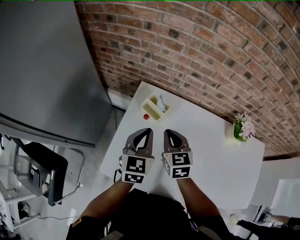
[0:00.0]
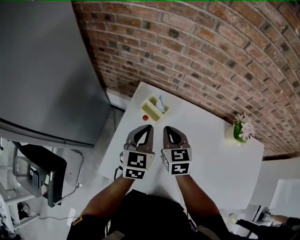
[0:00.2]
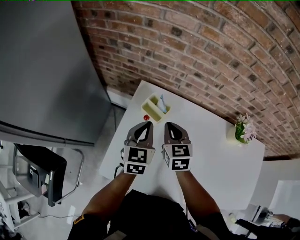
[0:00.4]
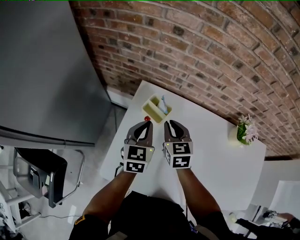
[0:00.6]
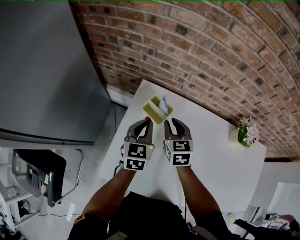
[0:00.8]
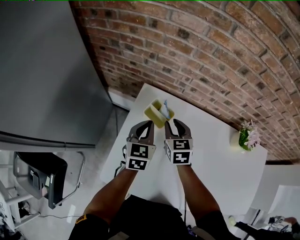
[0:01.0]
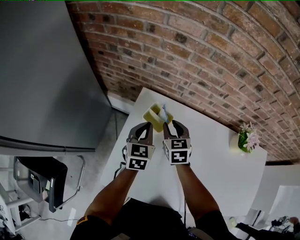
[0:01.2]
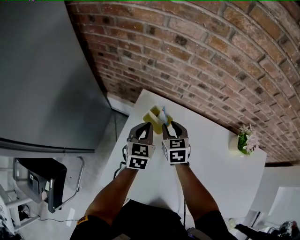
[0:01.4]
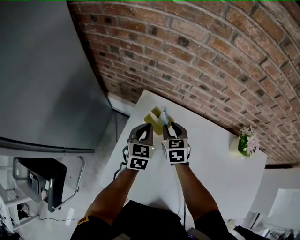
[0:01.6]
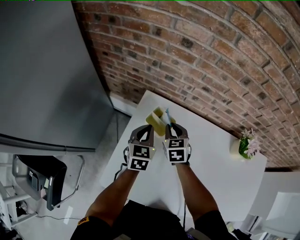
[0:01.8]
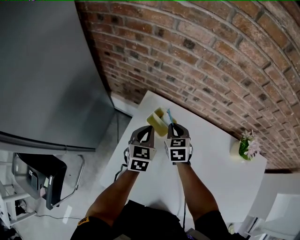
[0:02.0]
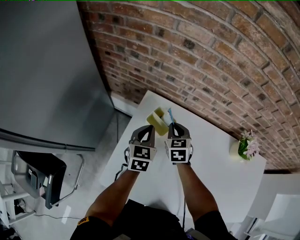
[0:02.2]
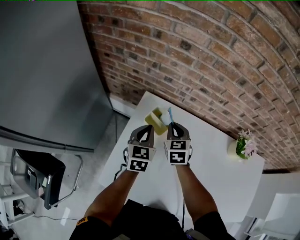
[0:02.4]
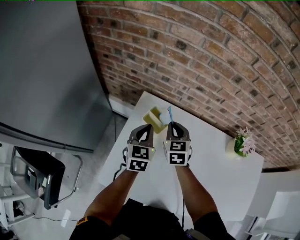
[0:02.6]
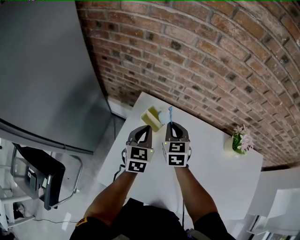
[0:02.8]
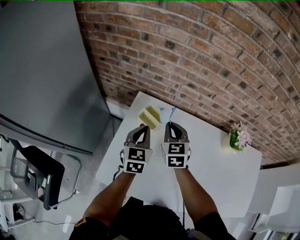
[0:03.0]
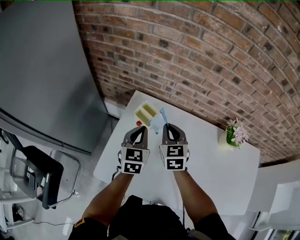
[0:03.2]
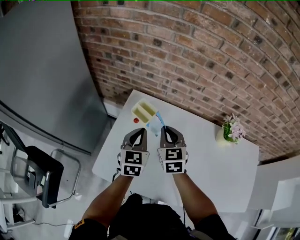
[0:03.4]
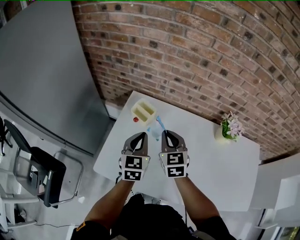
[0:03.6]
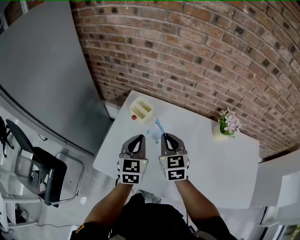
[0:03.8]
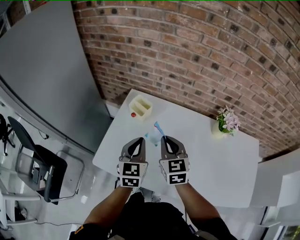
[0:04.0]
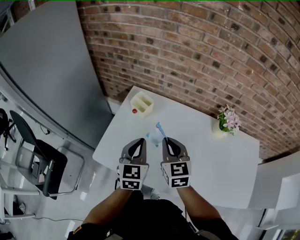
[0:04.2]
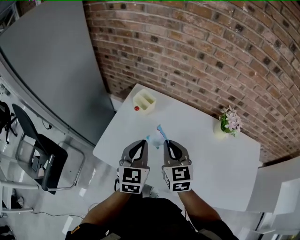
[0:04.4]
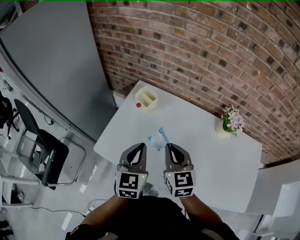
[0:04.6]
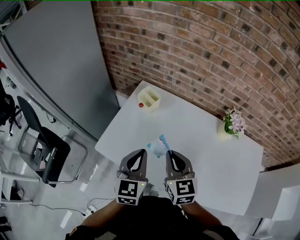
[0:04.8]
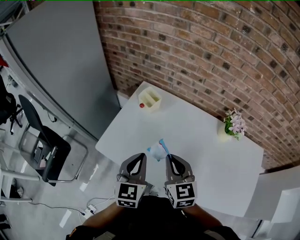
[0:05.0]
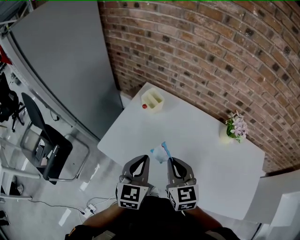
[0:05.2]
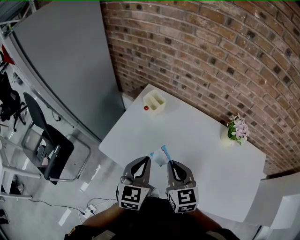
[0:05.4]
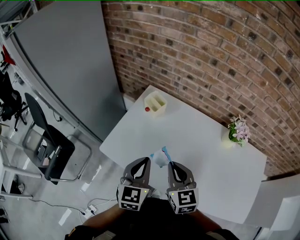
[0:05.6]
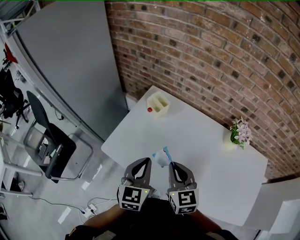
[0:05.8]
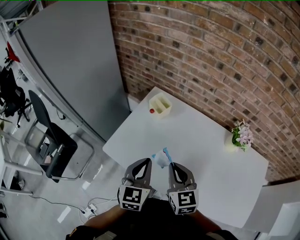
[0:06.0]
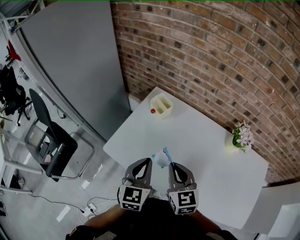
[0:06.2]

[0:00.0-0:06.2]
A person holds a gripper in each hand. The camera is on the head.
0:00.0 to 0:01.6: The grippers both shift forward and downward by some 15 cm. The right gripper opens up.
0:01.6 to 0:03.2: The left gripper is displaced backward and upward by approximately 10 cm, while the right gripper goes approximately 15 cm upward and backward, and closes.
0:03.2 to 0:04.6: Both grippers move backward, some 20 cm.
0:04.6 to 0:06.2: The grippers make only small movements.

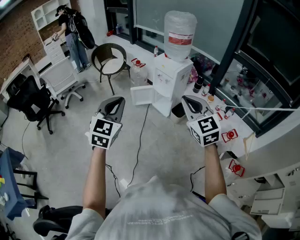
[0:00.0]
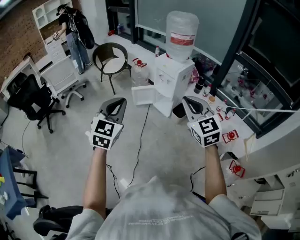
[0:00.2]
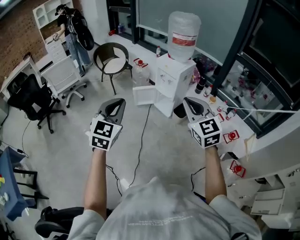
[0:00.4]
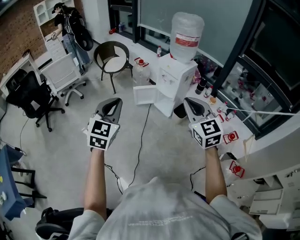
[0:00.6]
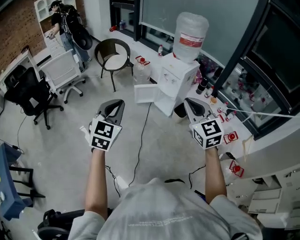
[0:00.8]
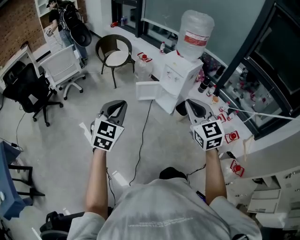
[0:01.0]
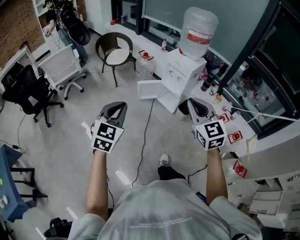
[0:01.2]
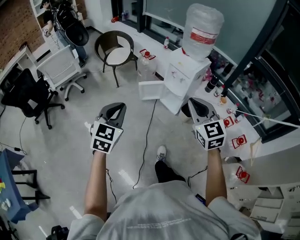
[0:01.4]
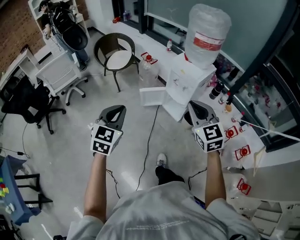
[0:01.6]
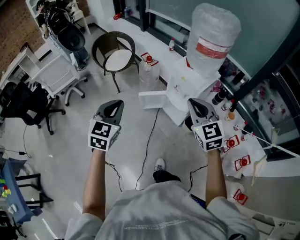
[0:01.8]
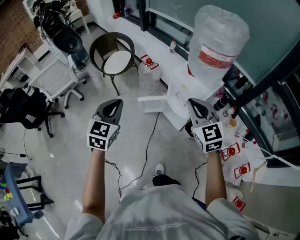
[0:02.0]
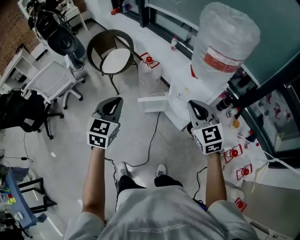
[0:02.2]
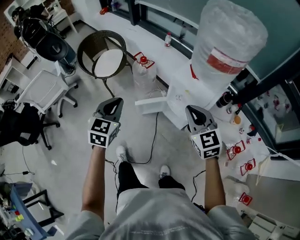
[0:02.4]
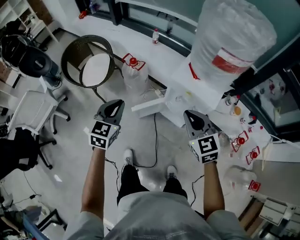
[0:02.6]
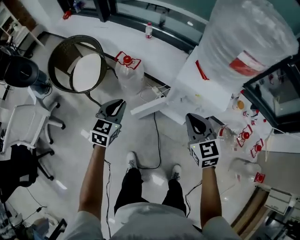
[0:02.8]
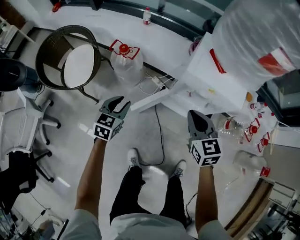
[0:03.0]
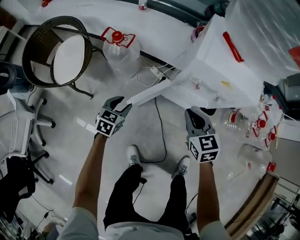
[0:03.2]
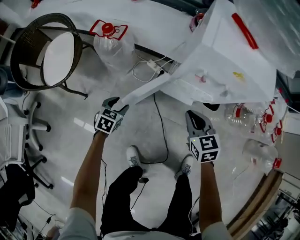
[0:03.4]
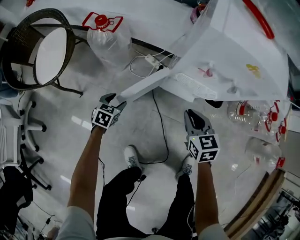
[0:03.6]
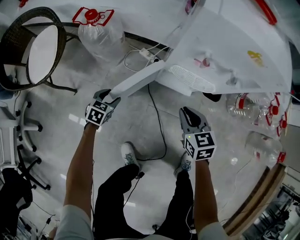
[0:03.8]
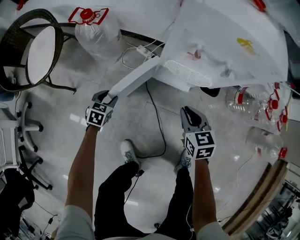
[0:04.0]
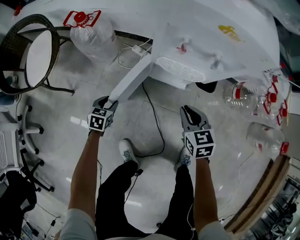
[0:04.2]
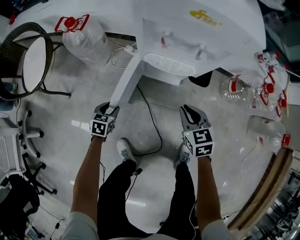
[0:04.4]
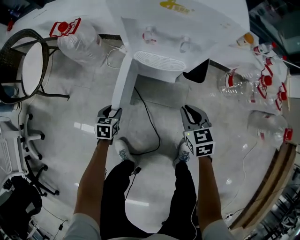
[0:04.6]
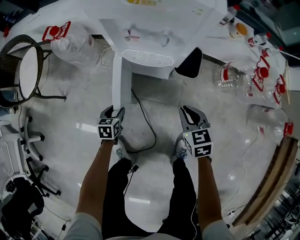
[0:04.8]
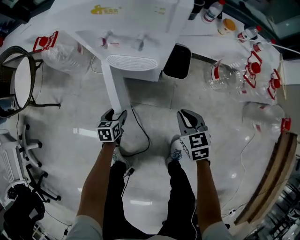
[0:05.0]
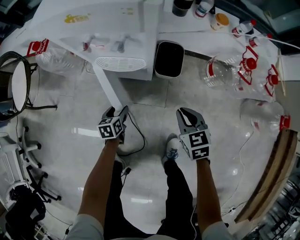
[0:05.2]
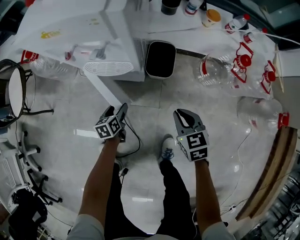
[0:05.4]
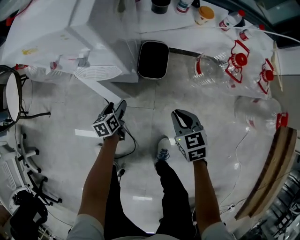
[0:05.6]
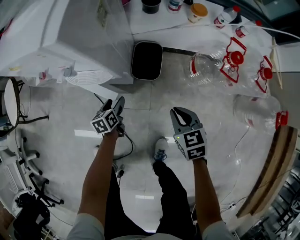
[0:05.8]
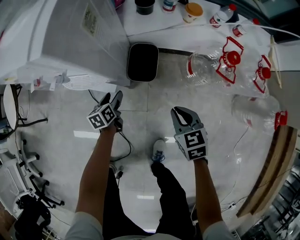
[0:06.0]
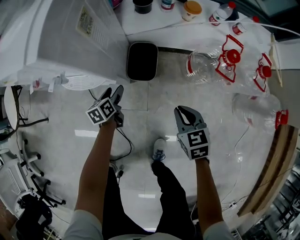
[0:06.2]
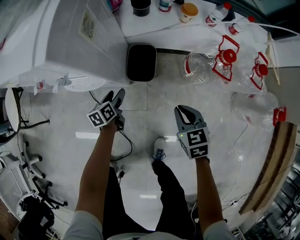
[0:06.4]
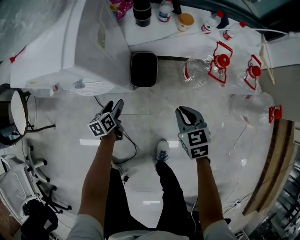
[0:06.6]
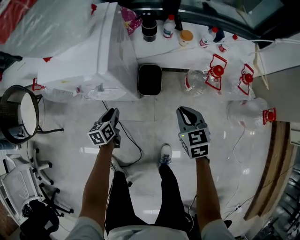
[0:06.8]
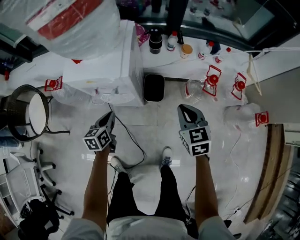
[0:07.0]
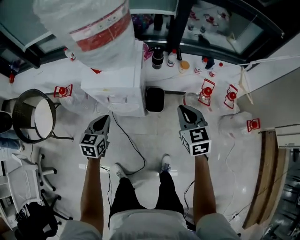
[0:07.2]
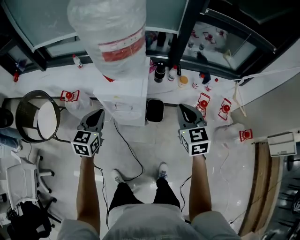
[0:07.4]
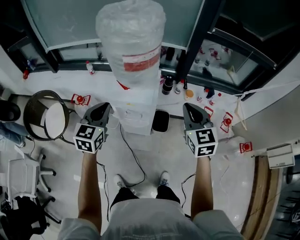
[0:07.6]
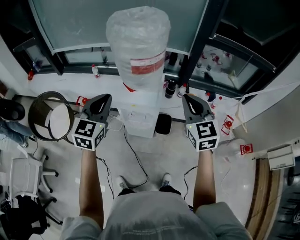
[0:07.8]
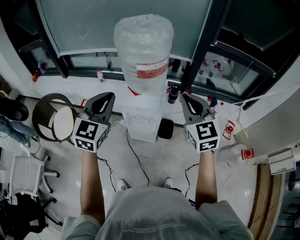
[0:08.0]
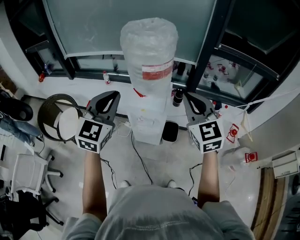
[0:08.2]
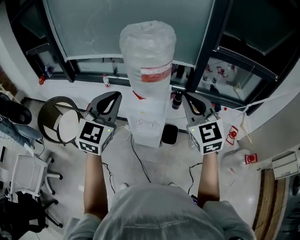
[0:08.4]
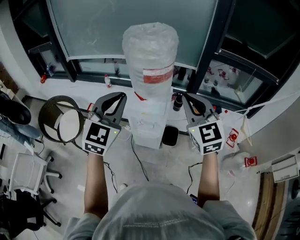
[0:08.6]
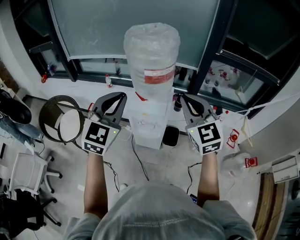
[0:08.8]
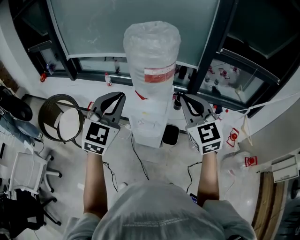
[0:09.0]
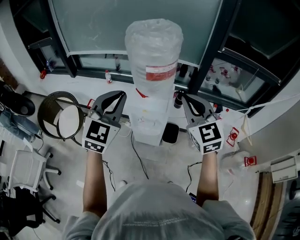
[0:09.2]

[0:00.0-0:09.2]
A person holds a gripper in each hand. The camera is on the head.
0:00.0 to 0:01.6: The right gripper is displaced forward by some 25 cm. The left gripper goes about 25 cm forward and downward.
0:01.6 to 0:03.0: The right gripper changes place by some 50 cm, and rotates roughly 40 degrees, while the left gripper ends up about 60 cm from where it was, swivels roughly 30 degrees, and opens its fingers.
0:03.0 to 0:04.6: The left gripper is displaced downward by some 35 cm, and turns by roughly 20 degrees. The right gripper moves downward and to the right, about 35 cm.
0:04.6 to 0:06.2: The left gripper moves to the right and forward, about 40 cm, and swivels roughly 30 degrees, while the right gripper shifts about 30 cm to the right.
0:06.2 to 0:07.6: The grippers both shift upward by about 60 cm. The right gripper tilts its fingers some 30 degrees upward, while the left gripper rolls clockwise, seen from behind, by about 40 degrees, and closes.
0:07.6 to 0:09.2: The left gripper moves upward, about 15 cm, and swivels approximately 30 degrees. The right gripper goes some 15 cm upward and to the left, and rotates about 20 degrees.

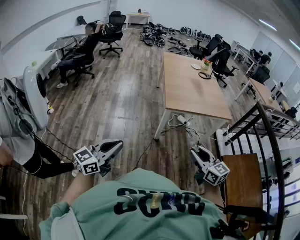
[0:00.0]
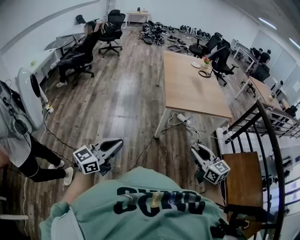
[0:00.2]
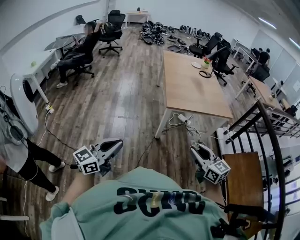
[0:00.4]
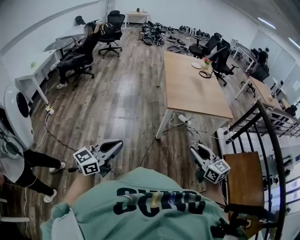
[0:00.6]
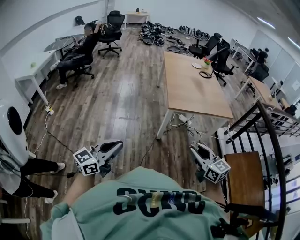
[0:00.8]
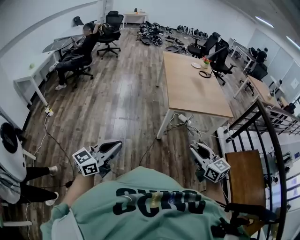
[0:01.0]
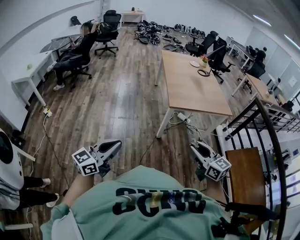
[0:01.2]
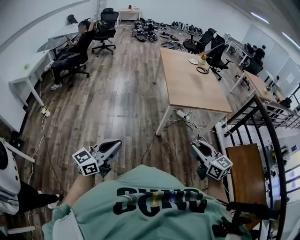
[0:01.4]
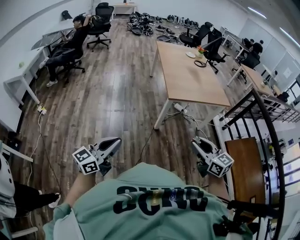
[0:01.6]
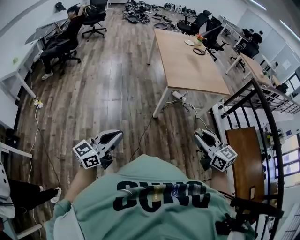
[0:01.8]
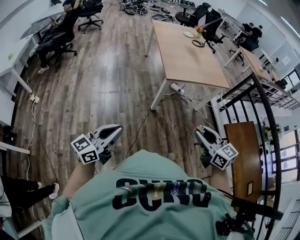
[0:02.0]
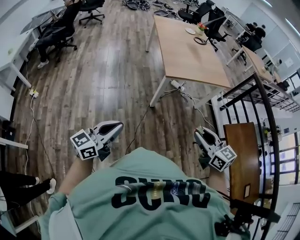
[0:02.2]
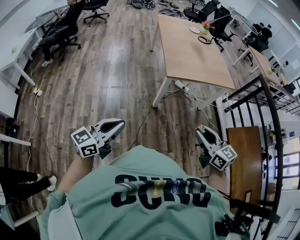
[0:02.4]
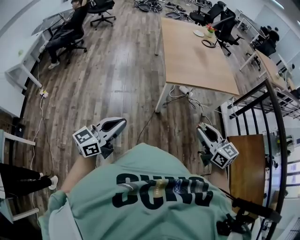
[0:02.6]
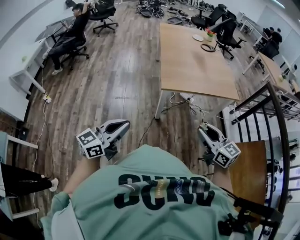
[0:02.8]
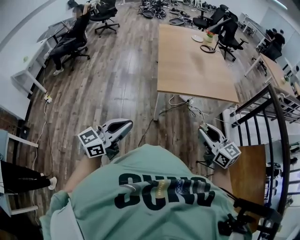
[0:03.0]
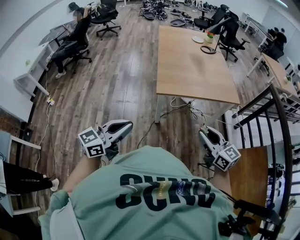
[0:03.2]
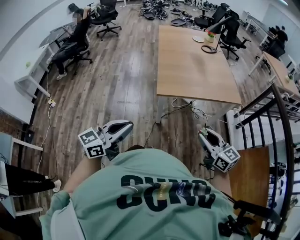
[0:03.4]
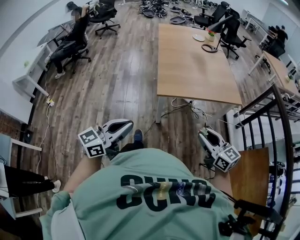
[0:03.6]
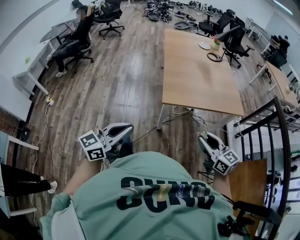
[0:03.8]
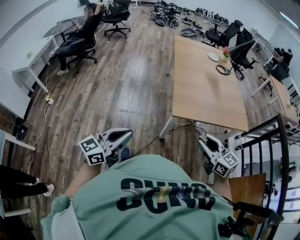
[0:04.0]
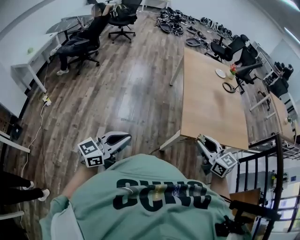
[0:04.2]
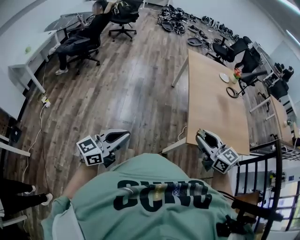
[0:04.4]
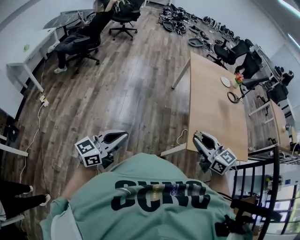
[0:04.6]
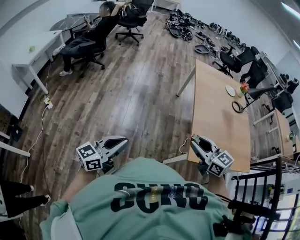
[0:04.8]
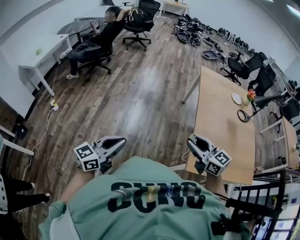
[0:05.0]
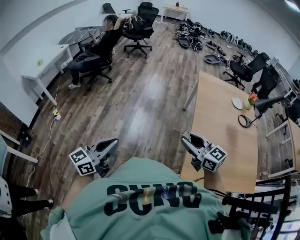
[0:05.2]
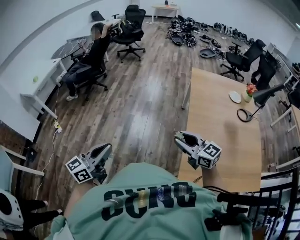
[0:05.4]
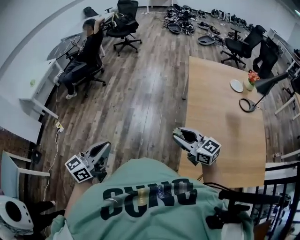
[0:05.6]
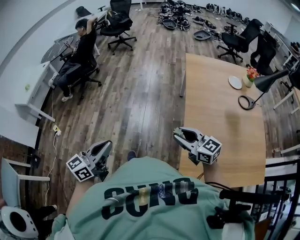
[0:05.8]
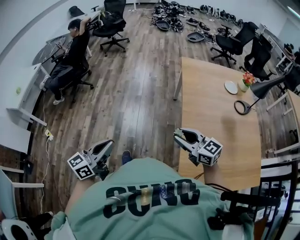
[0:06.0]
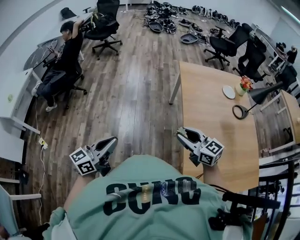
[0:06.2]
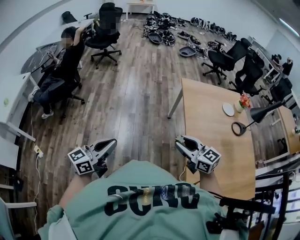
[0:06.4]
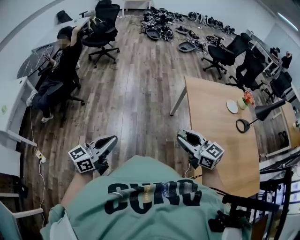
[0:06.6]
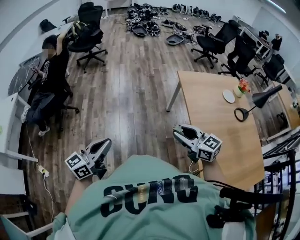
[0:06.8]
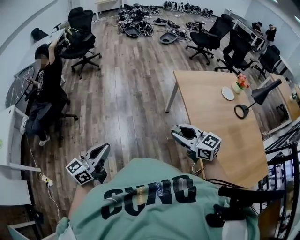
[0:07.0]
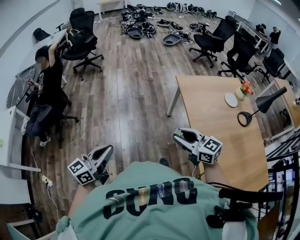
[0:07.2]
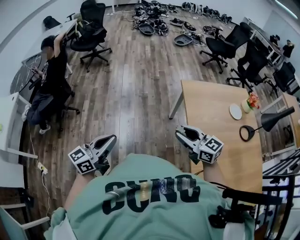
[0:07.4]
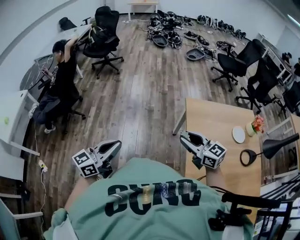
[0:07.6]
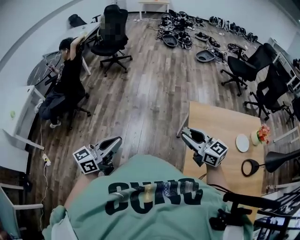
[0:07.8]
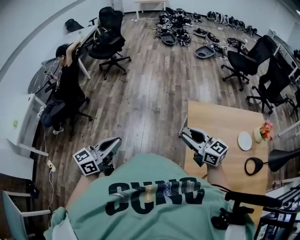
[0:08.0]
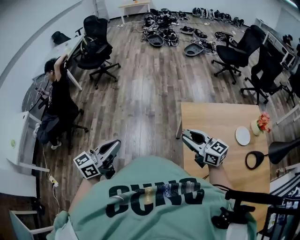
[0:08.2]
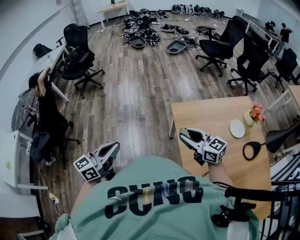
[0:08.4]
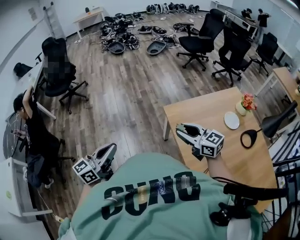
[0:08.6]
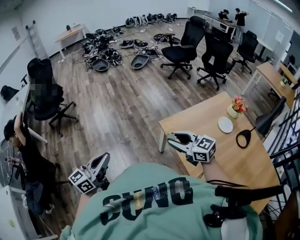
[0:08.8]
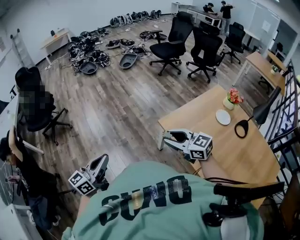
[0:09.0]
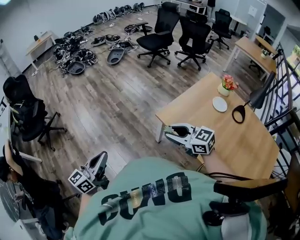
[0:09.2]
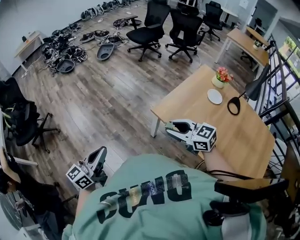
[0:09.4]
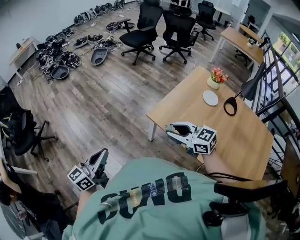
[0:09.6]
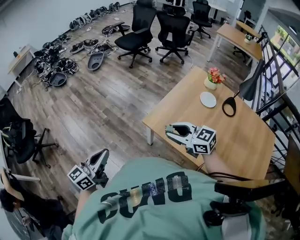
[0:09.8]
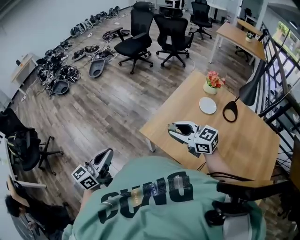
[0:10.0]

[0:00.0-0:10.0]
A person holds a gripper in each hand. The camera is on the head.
0:00.0 to 0:01.4: The grippers both shift to the left by roughly 10 cm.
0:01.4 to 0:02.8: The left gripper heads to the right and forward, covering about 25 cm. Meanwhile the right gripper is displaced forward and to the right by some 20 cm.
0:02.8 to 0:04.2: The two grippers go roughly 30 cm forward and to the left.
0:04.2 to 0:05.8: Both grippers move forward, roughly 40 cm. The right gripper turns by approximately 20 degrees.
0:05.8 to 0:07.2: Both grippers move forward, roughly 35 cm.
0:07.2 to 0:08.6: Both grippers travel together forward and to the right, approximately 40 cm.
0:08.6 to 0:10.0: The left gripper ends up approximately 25 cm from where it was, and changes its angle by some 30 degrees, while the right gripper changes place by about 10 cm, and changes its angle by about 20 degrees.